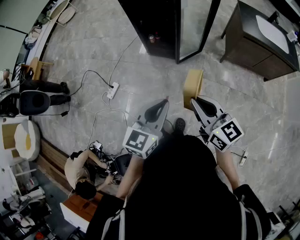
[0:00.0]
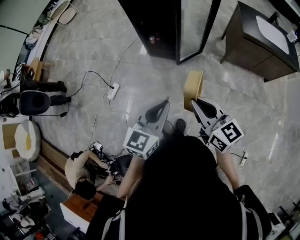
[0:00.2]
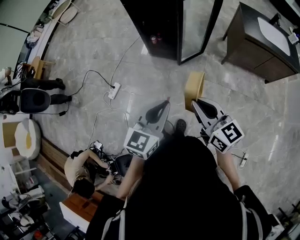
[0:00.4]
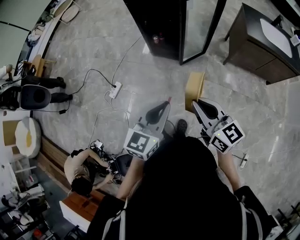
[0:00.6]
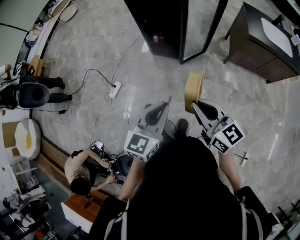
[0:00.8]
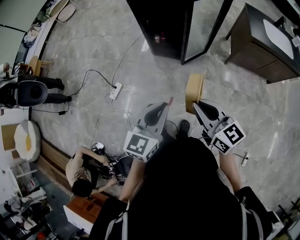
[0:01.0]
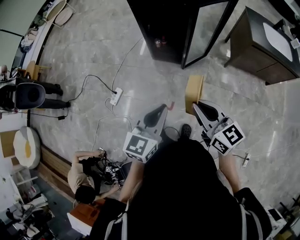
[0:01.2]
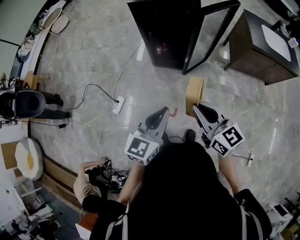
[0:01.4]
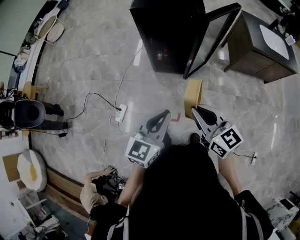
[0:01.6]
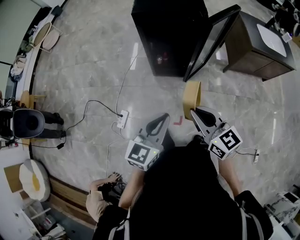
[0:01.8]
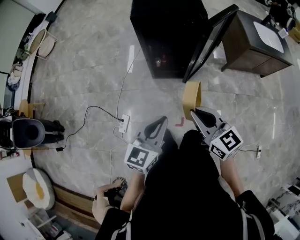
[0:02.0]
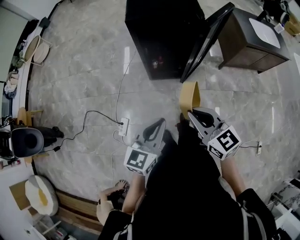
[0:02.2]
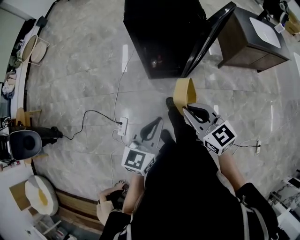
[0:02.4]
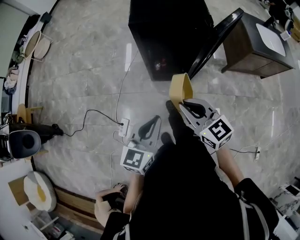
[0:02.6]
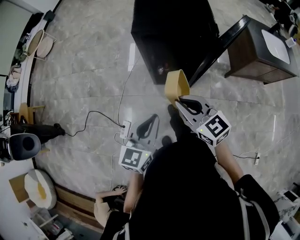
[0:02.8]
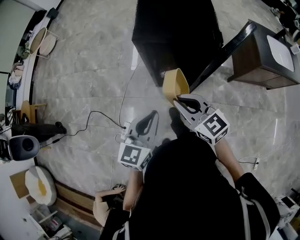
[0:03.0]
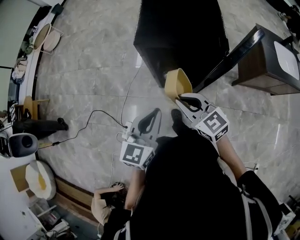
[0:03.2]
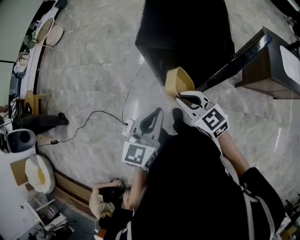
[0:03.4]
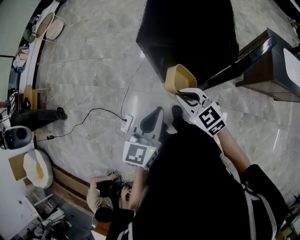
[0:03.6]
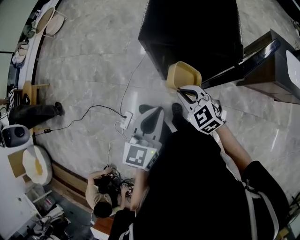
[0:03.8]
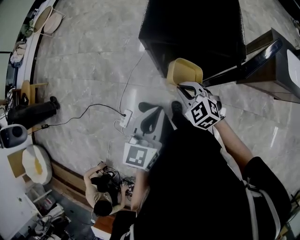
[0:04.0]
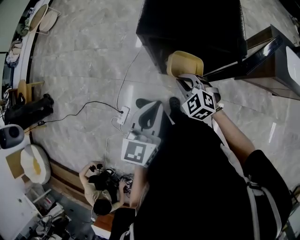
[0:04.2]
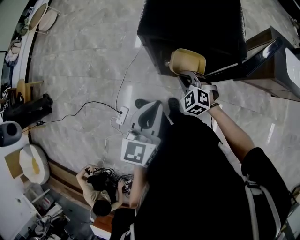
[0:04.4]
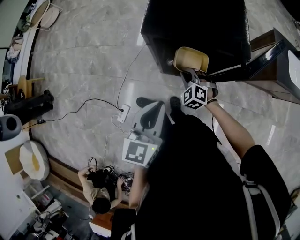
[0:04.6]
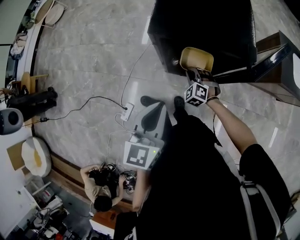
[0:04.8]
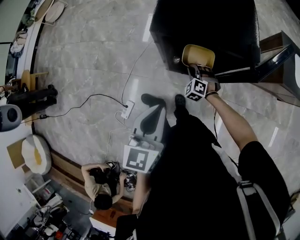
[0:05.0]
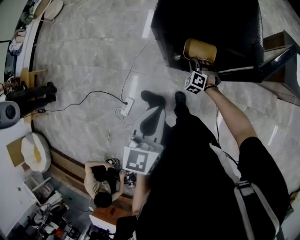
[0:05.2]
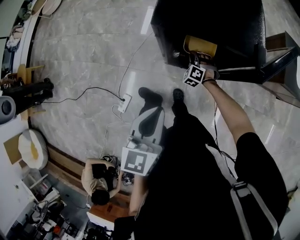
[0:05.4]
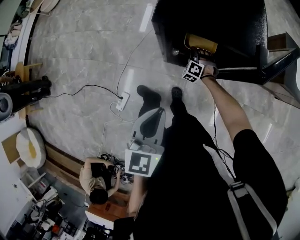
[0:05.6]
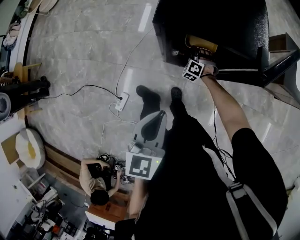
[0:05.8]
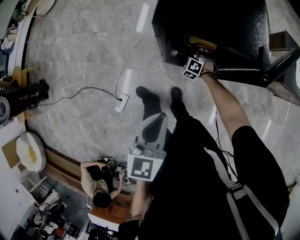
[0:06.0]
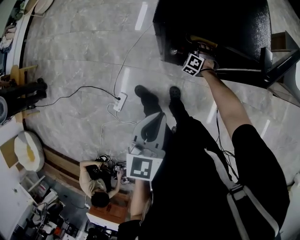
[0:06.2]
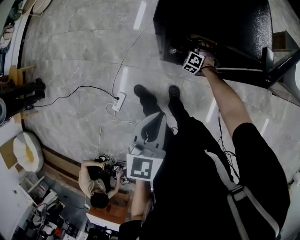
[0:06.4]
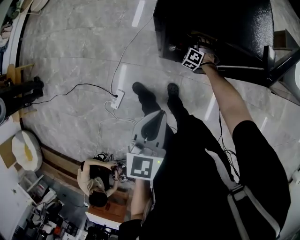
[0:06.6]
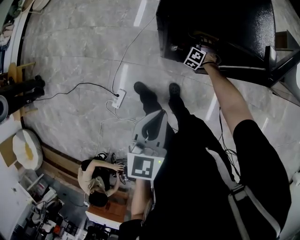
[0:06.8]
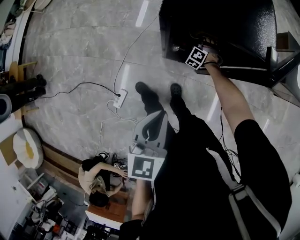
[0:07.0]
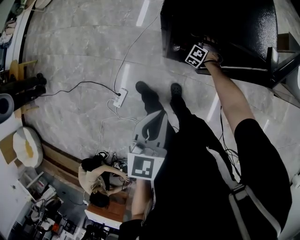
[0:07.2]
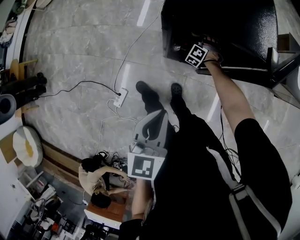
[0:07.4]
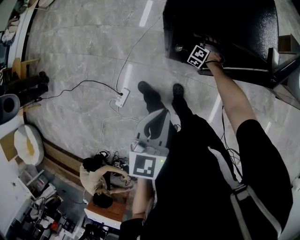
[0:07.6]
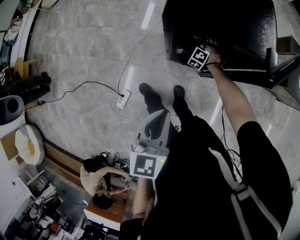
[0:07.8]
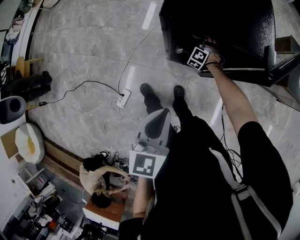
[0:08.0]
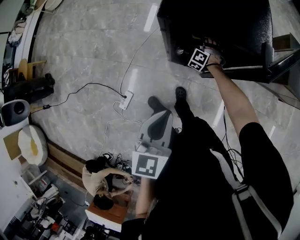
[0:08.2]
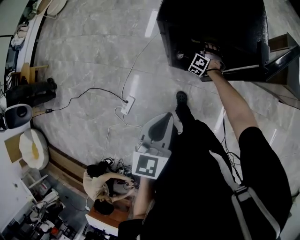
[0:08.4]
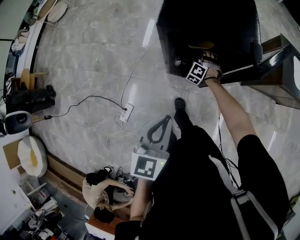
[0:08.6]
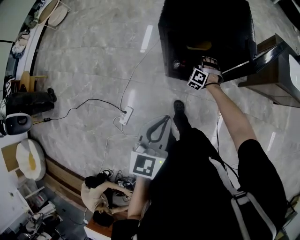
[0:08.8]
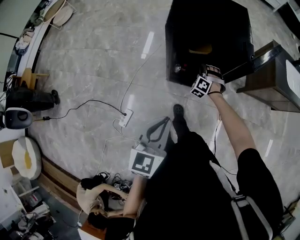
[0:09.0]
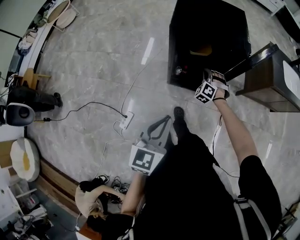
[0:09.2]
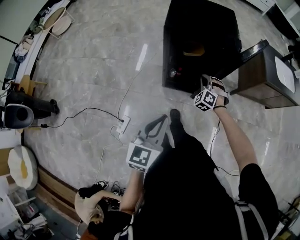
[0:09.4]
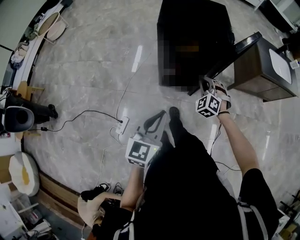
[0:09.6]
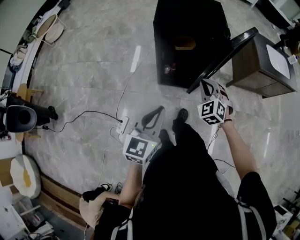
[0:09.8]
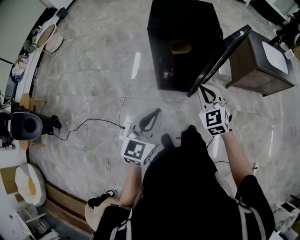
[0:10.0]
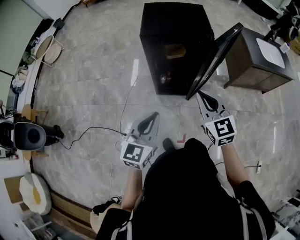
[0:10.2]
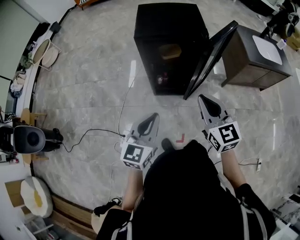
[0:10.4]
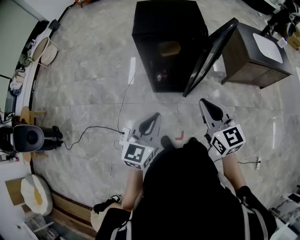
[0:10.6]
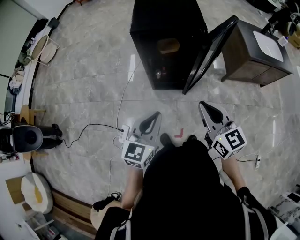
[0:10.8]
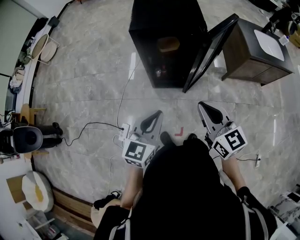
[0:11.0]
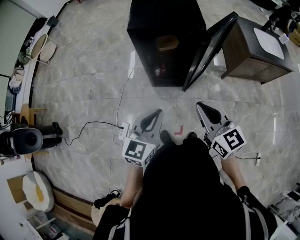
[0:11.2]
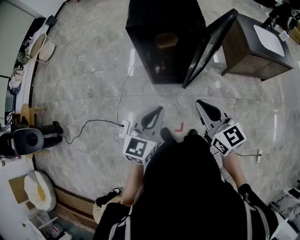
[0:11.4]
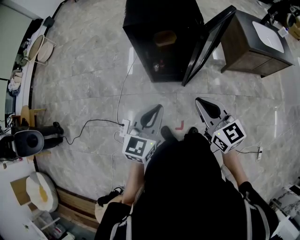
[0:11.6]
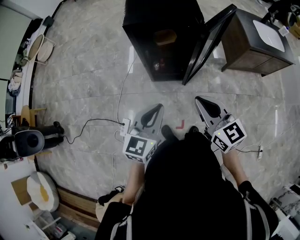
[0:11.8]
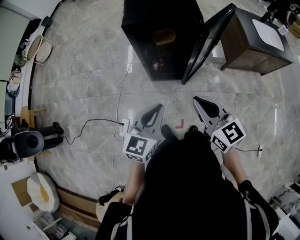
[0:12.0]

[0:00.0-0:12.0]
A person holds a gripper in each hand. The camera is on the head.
0:00.0 to 0:01.6: The two grippers go about 25 cm to the left and forward.
0:01.6 to 0:03.0: Both grippers move forward, approximately 25 cm.
0:03.0 to 0:04.4: The right gripper moves downward and forward, about 25 cm, and changes its angle by some 50 degrees. Meanwhile the left gripper is displaced forward by some 10 cm.
0:04.4 to 0:06.0: The right gripper travels downward and forward by roughly 25 cm, and turns by approximately 30 degrees.
0:06.0 to 0:07.6: The right gripper opens up.
0:07.6 to 0:09.0: The right gripper shifts roughly 15 cm backward and upward, and closes its fingers, while the left gripper is displaced backward by some 10 cm.
0:09.0 to 0:10.4: The left gripper shifts approximately 10 cm backward. Meanwhile the right gripper heads upward and backward, covering roughly 50 cm, and twists roughly 70 degrees clockwise, seen from behind.
0:10.4 to 0:12.0: The left gripper changes place by about 5 cm.

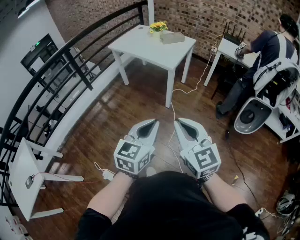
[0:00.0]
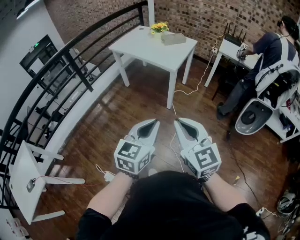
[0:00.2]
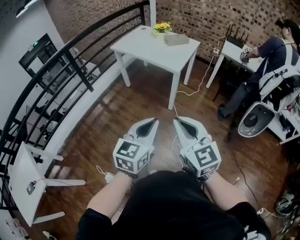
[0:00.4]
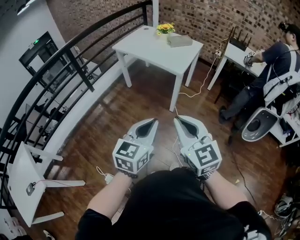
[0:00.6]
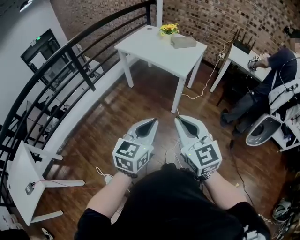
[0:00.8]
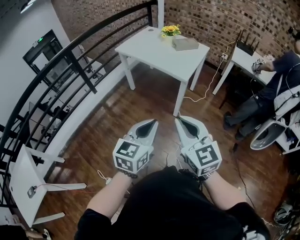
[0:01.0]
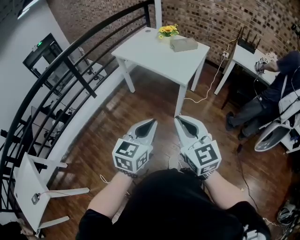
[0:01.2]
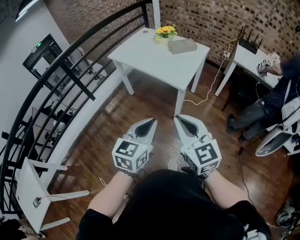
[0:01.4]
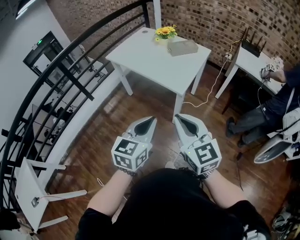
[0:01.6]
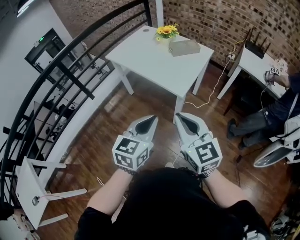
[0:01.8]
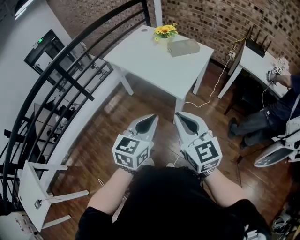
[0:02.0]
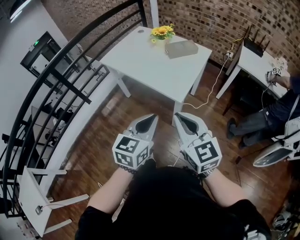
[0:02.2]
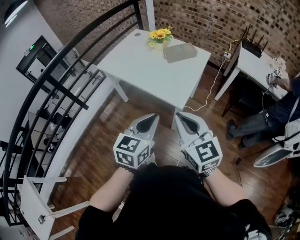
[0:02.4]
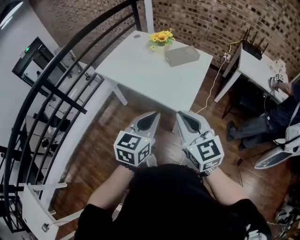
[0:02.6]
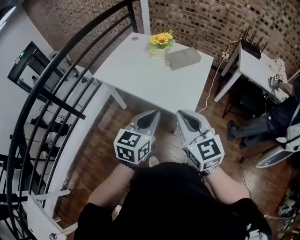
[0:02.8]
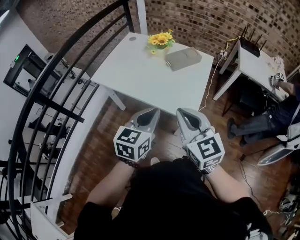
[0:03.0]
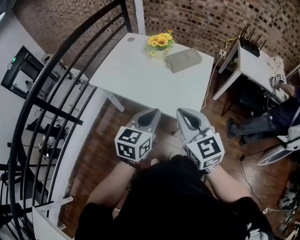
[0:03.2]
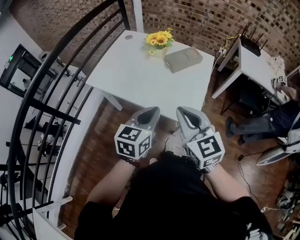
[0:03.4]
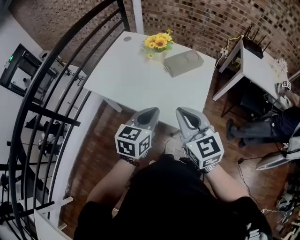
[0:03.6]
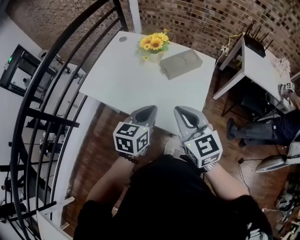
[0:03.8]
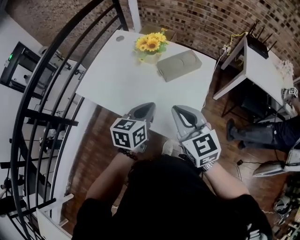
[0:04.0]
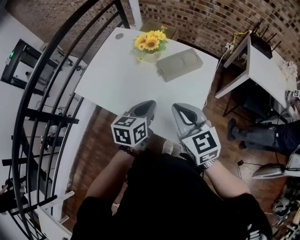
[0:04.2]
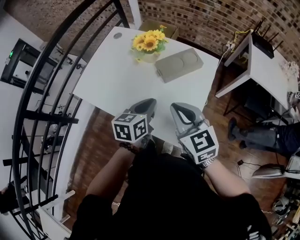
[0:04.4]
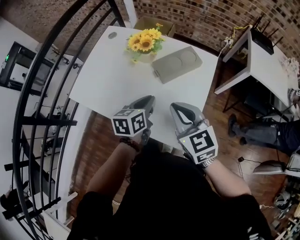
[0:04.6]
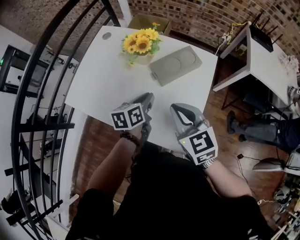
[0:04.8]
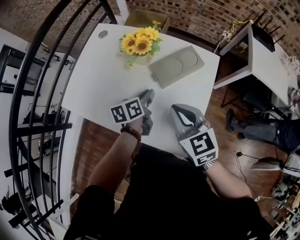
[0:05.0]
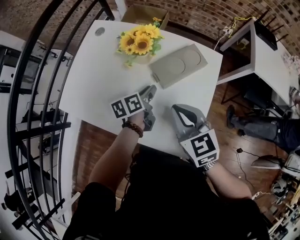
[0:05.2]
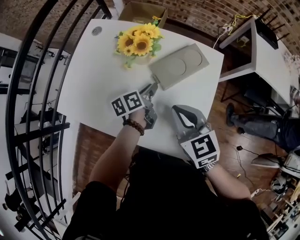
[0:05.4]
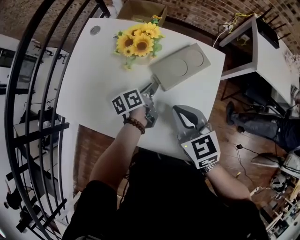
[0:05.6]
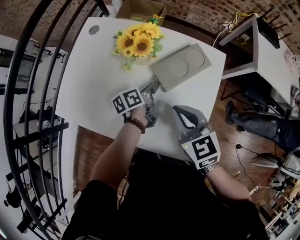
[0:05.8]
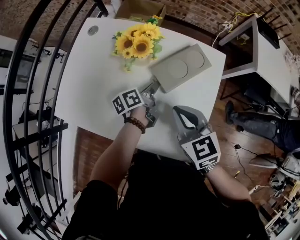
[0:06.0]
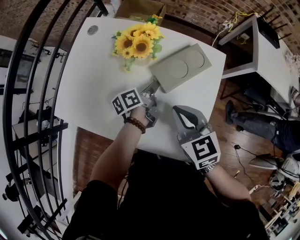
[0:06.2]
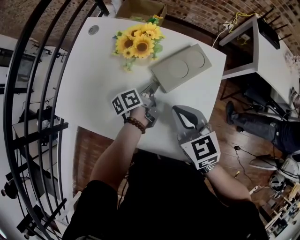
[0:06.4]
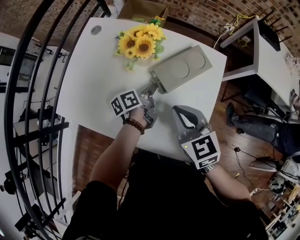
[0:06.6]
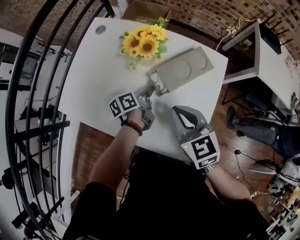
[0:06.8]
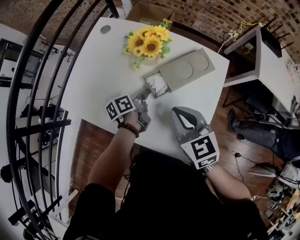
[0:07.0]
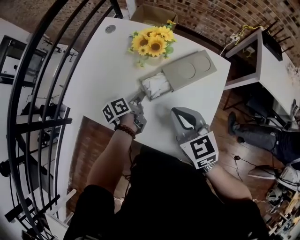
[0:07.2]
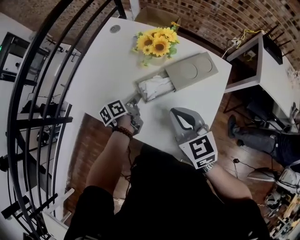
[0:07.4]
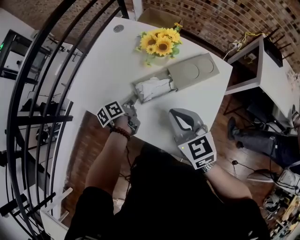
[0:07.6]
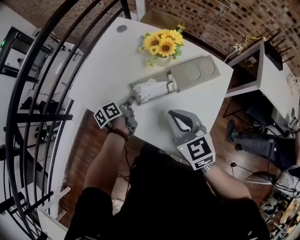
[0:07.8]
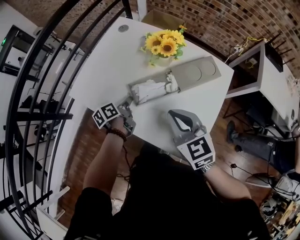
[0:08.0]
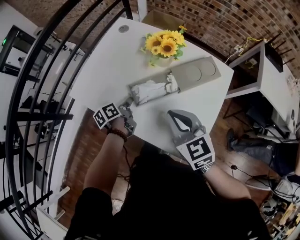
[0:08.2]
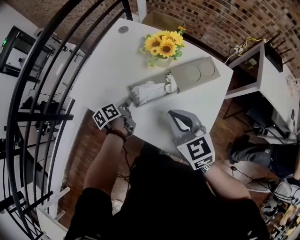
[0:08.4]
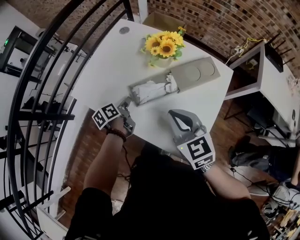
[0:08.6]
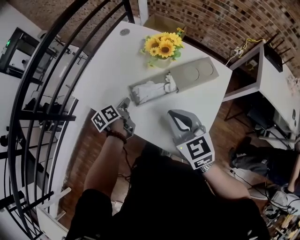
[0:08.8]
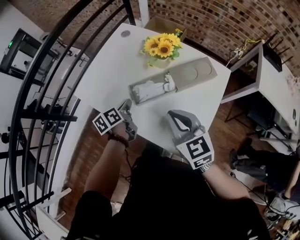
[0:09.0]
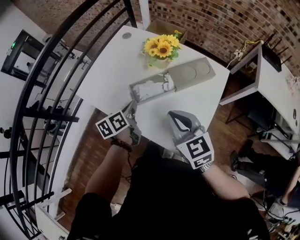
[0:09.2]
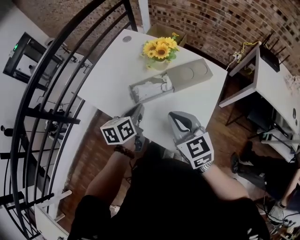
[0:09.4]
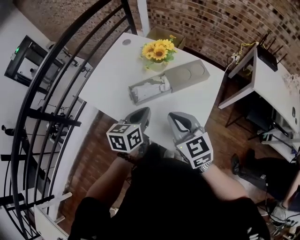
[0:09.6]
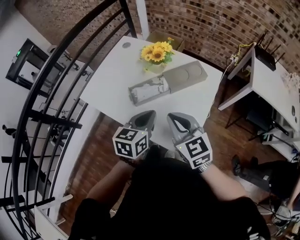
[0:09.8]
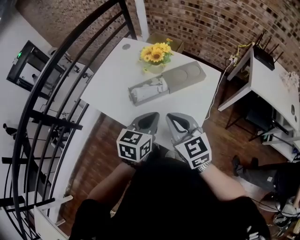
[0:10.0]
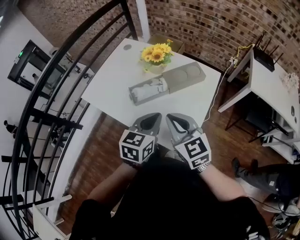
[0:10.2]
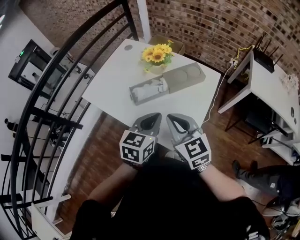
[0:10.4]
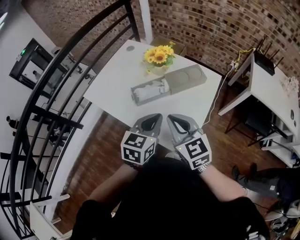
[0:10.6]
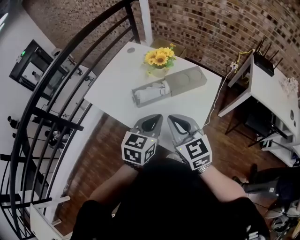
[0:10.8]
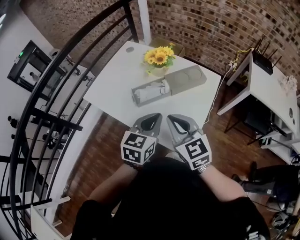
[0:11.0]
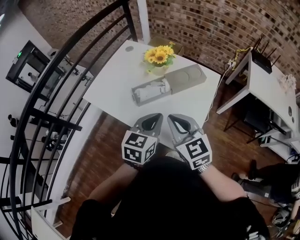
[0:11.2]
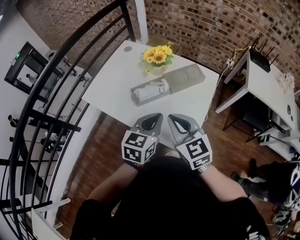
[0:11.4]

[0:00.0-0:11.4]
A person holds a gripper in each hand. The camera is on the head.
0:00.0 to 0:01.4: Both grippers travel together forward, approximately 25 cm.
0:01.4 to 0:02.8: The two grippers go about 30 cm forward.
0:02.8 to 0:04.2: The two grippers go roughly 25 cm forward.
0:04.2 to 0:05.6: The right gripper travels forward and downward by roughly 15 cm, while the left gripper is displaced forward and downward by approximately 25 cm, and rotates around the line of its fingers by some 40 degrees, counterclockwise from behind.
0:05.6 to 0:07.2: The left gripper is displaced to the left by about 10 cm.
0:07.2 to 0:08.6: The left gripper heads to the left, covering about 10 cm.
0:08.6 to 0:10.0: The left gripper is displaced upward, to the right and backward by about 30 cm, and rolls clockwise, seen from behind, by some 60 degrees. Meanwhile the right gripper heads backward, covering roughly 10 cm.
0:10.0 to 0:11.4: The grippers make only small movements.
